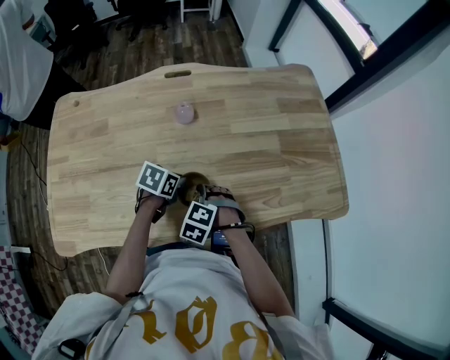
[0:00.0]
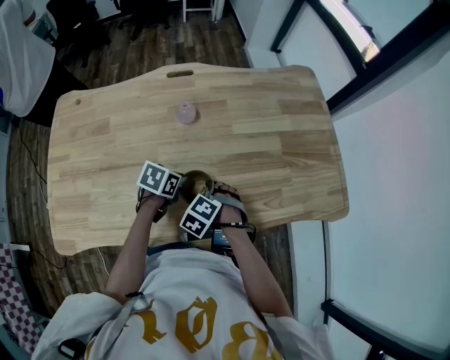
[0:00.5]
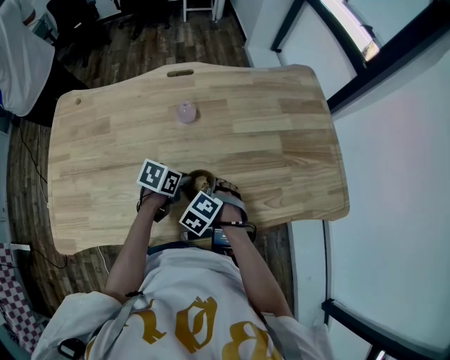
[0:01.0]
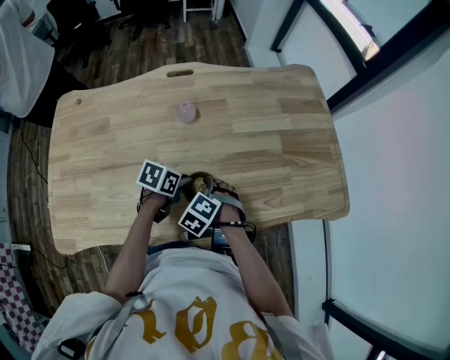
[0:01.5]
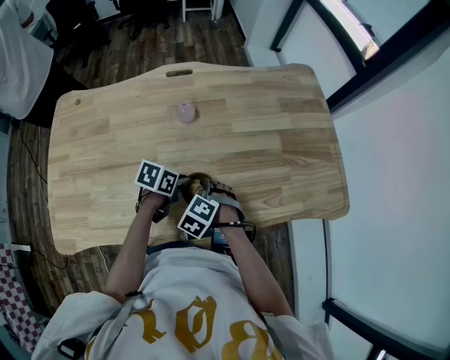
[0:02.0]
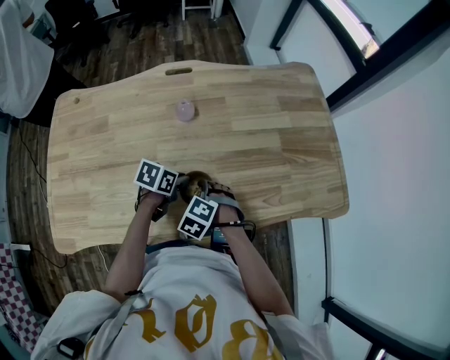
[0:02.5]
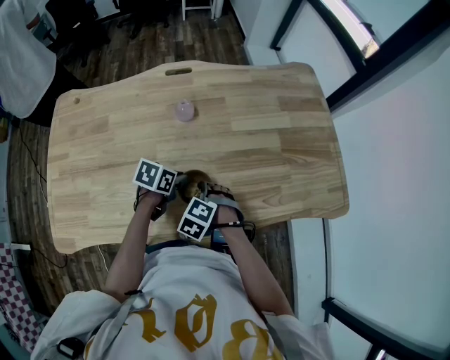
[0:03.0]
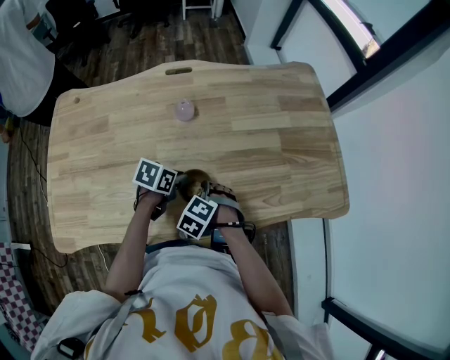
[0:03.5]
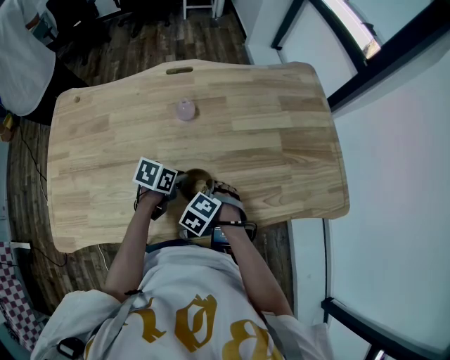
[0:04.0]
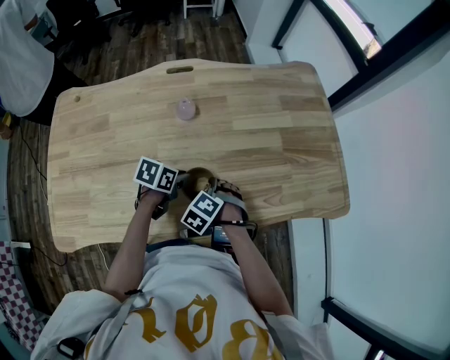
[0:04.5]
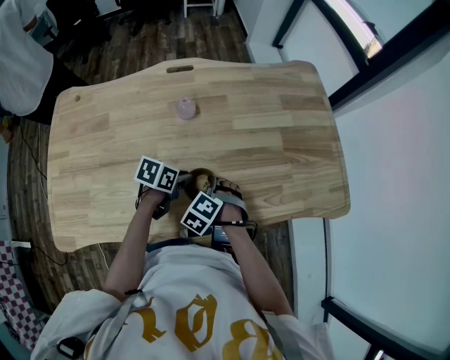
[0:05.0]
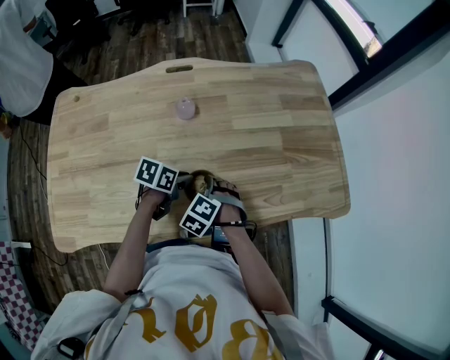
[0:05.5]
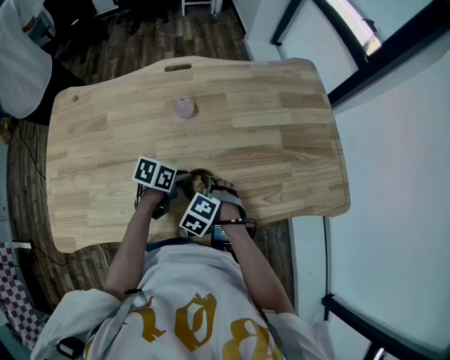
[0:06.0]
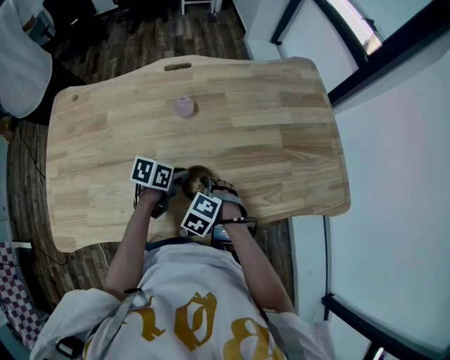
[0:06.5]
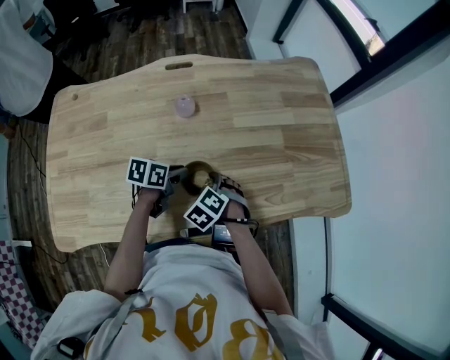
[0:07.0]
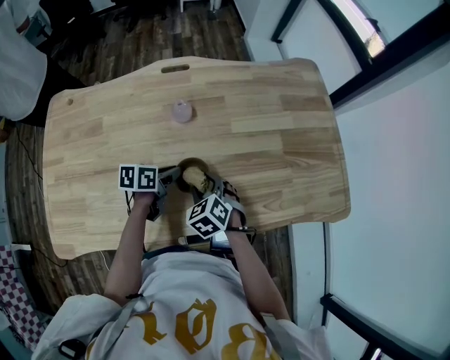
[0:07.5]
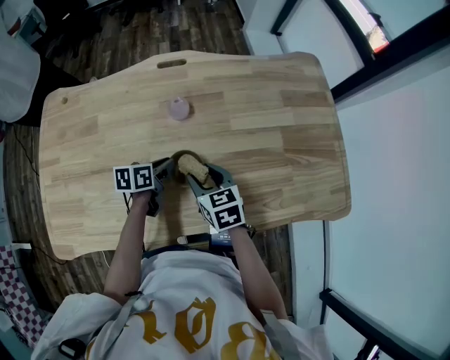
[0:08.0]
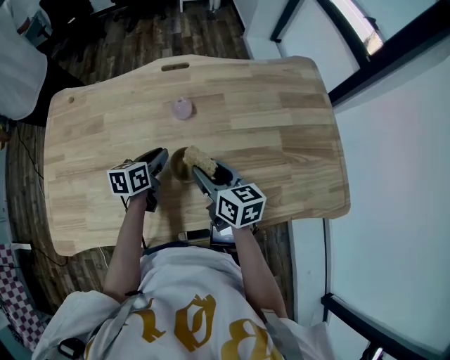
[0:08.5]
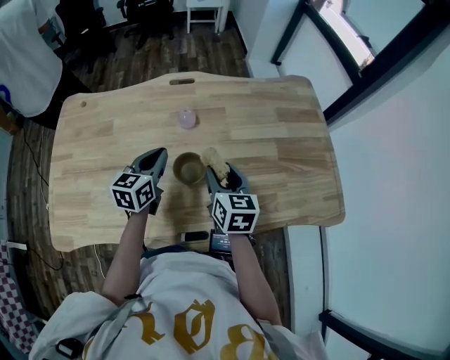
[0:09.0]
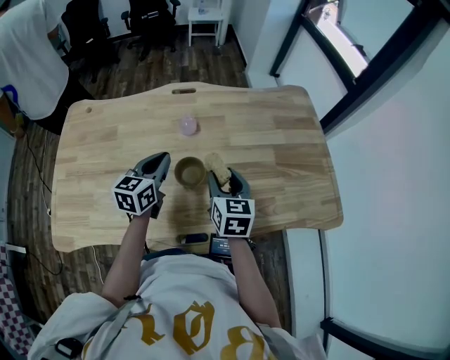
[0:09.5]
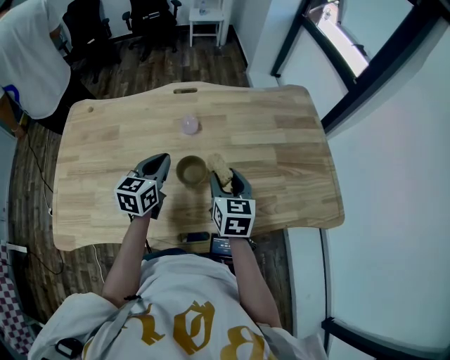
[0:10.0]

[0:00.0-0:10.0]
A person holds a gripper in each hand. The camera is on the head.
0:00.0 to 0:06.0: The grippers move only a little.
0:06.0 to 0:08.0: The left gripper shifts about 10 cm to the left and forward, and rotates about 20 degrees. Meanwhile the right gripper travels forward and upward by about 10 cm, and twists some 50 degrees clockwise, seen from behind.
0:08.0 to 0:10.0: The right gripper shifts approximately 10 cm upward and to the right, and turns by about 20 degrees; the left gripper shifts roughly 15 cm upward, and swivels about 40 degrees.

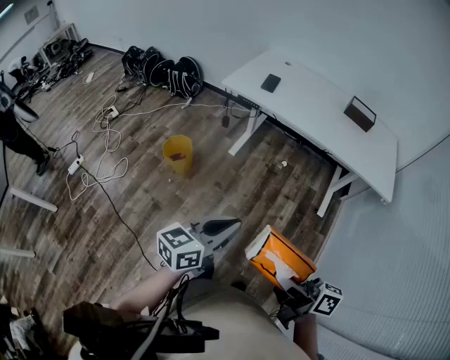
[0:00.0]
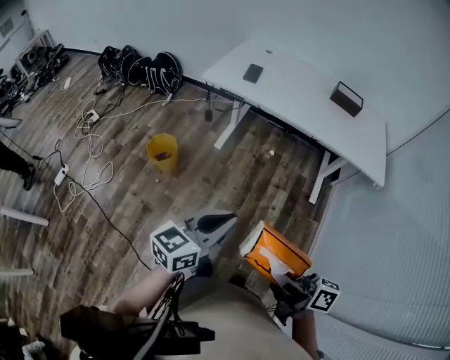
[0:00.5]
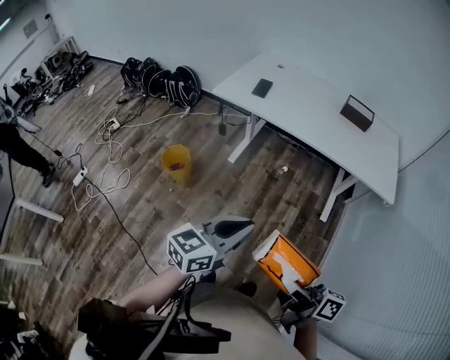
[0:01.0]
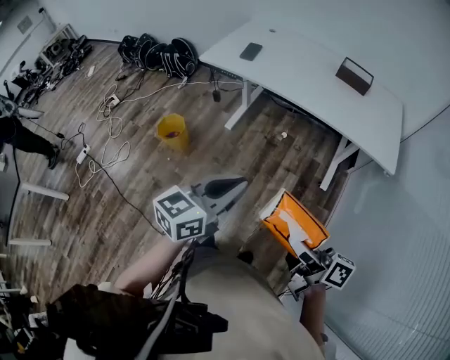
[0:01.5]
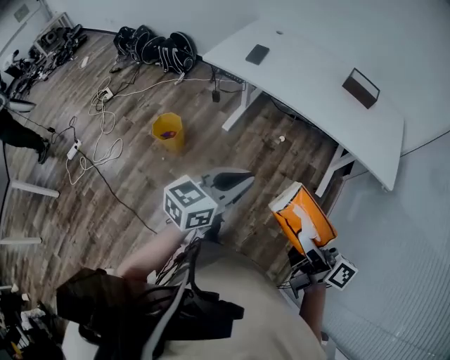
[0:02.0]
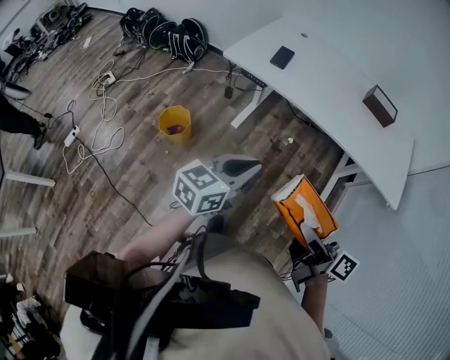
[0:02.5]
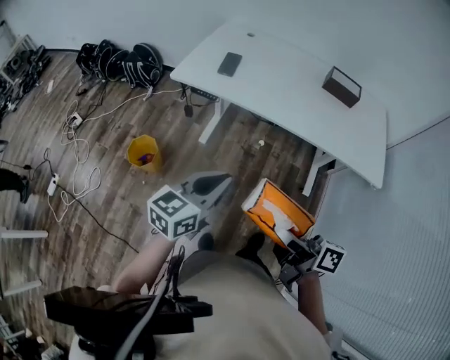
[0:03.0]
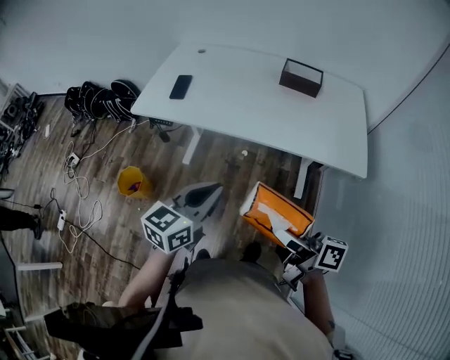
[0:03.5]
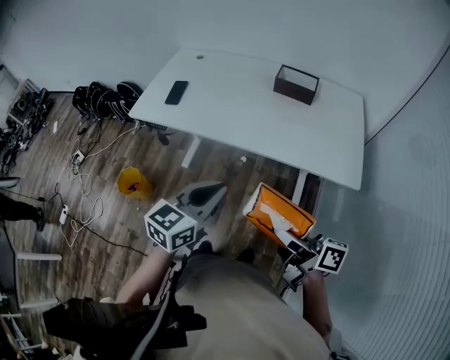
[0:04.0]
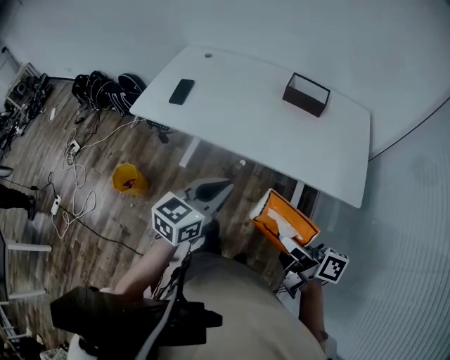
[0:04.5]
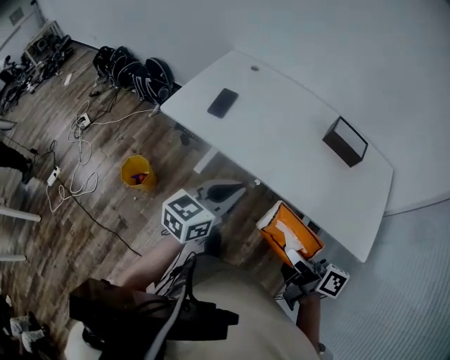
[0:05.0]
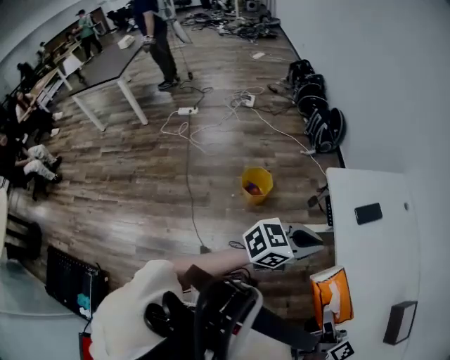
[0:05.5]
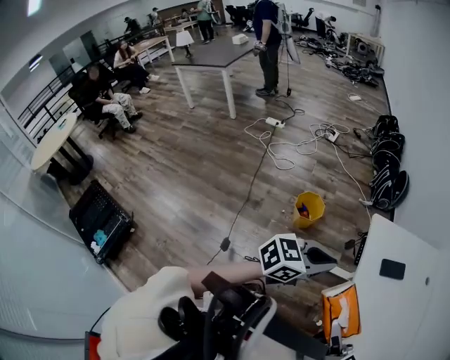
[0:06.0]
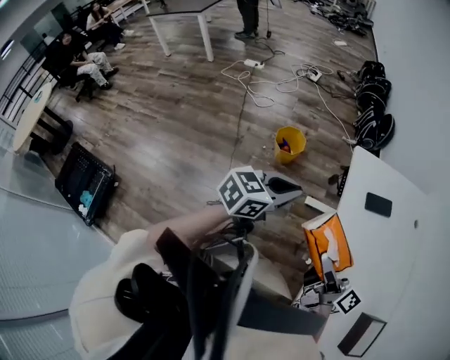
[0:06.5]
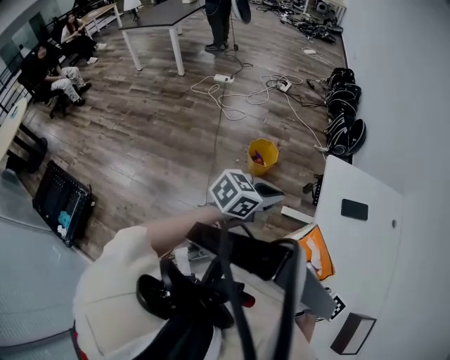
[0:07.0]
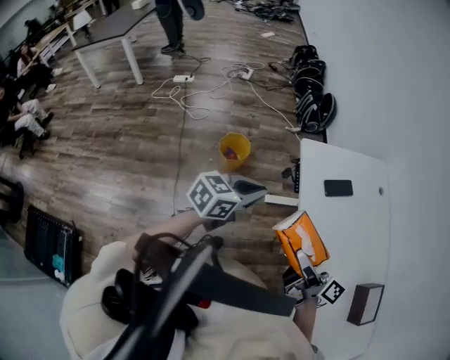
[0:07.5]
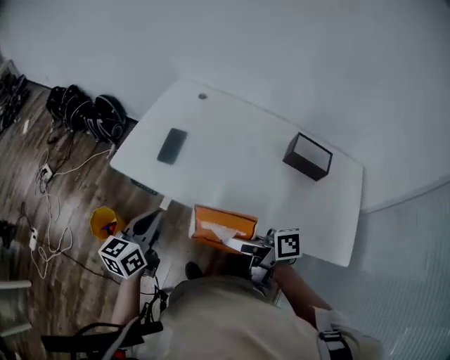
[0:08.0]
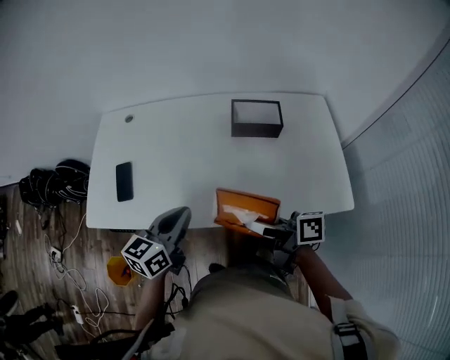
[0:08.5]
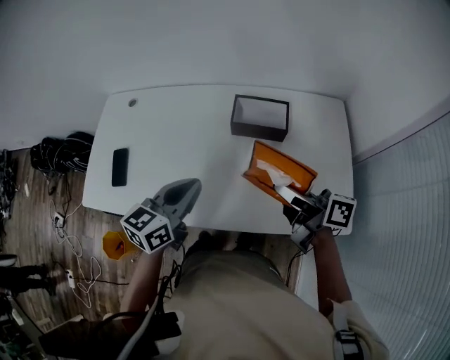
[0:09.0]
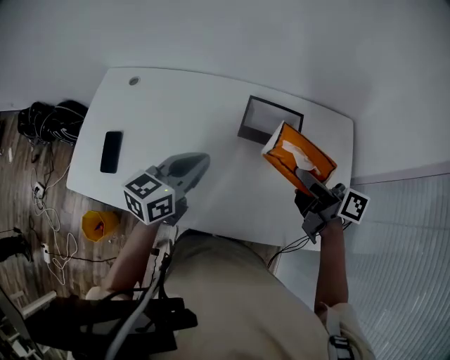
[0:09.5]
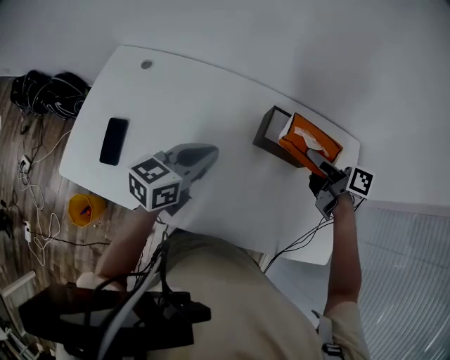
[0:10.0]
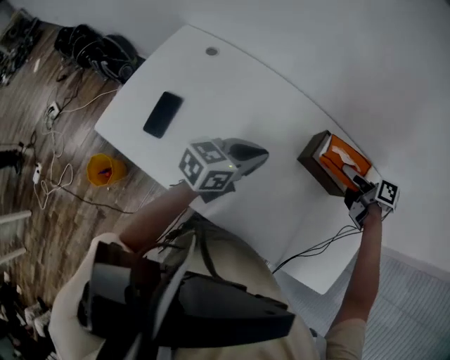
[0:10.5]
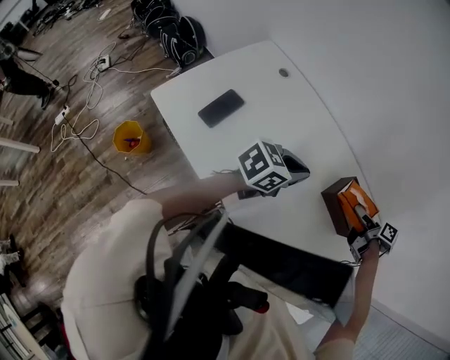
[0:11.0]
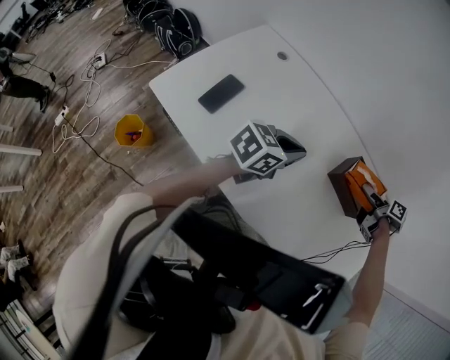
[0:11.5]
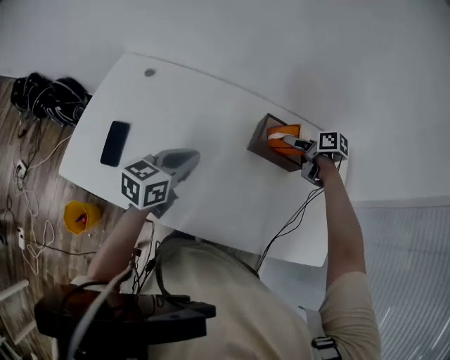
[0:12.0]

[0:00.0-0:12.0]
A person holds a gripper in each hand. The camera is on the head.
0:00.0 to 0:02.0: Both grippers travel together forward and to the right, approximately 15 cm.
0:02.0 to 0:04.0: Both grippers move to the right and forward, approximately 25 cm.
0:04.0 to 0:06.0: The right gripper moves roughly 30 cm, and swivels roughly 50 degrees. Meanwhile the left gripper shifts by roughly 30 cm, and turns by roughly 50 degrees.
0:06.0 to 0:08.0: The right gripper changes place by roughly 10 cm, and changes its angle by about 20 degrees. Meanwhile the left gripper shifts by roughly 20 cm, and rotates about 30 degrees.
0:08.0 to 0:10.0: Both grippers are carried roughly 50 cm. The right gripper turns by about 40 degrees. Meanwhile the left gripper swivels roughly 30 degrees.
0:10.0 to 0:12.0: The right gripper is displaced downward by about 10 cm, and turns by some 20 degrees. Meanwhile the left gripper ends up some 5 cm from where it was.

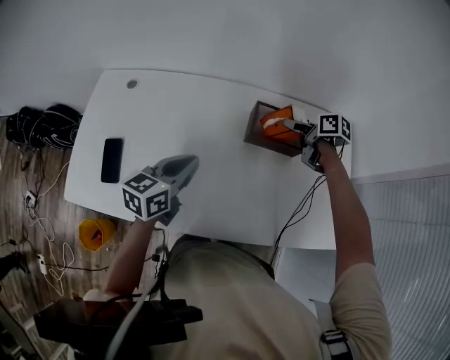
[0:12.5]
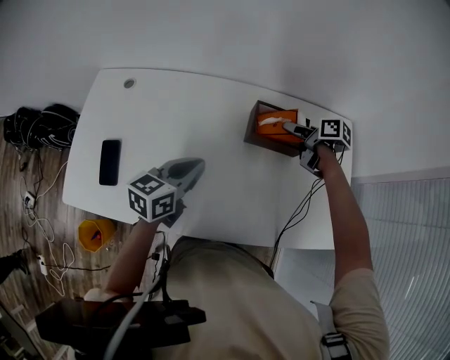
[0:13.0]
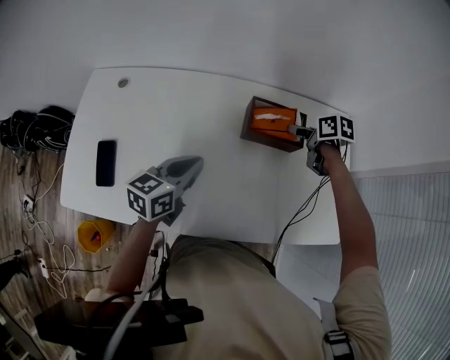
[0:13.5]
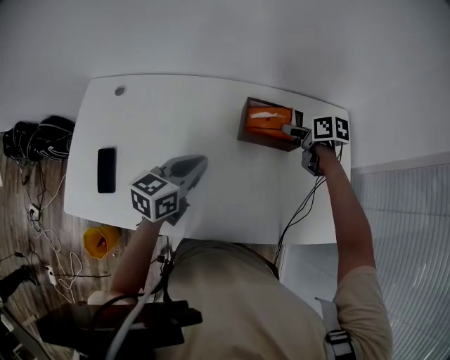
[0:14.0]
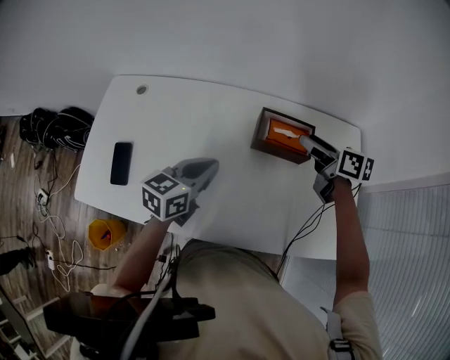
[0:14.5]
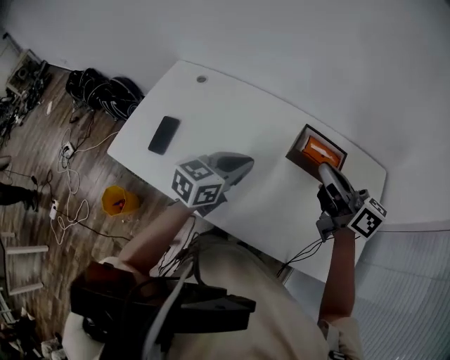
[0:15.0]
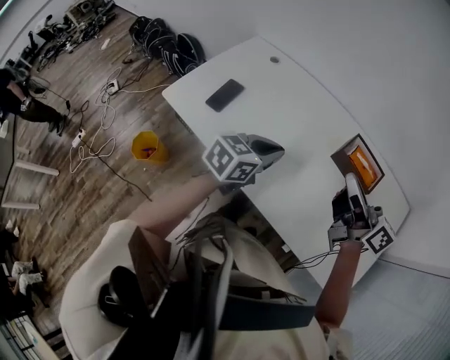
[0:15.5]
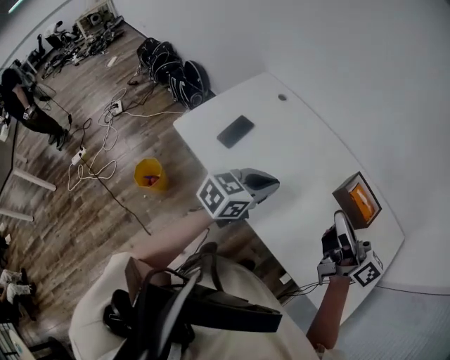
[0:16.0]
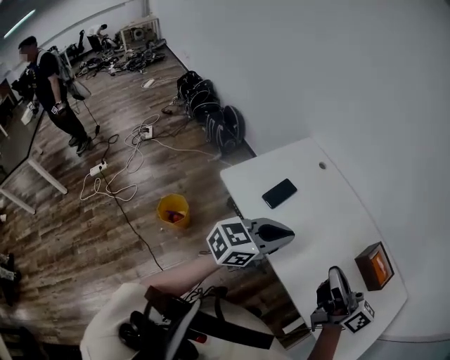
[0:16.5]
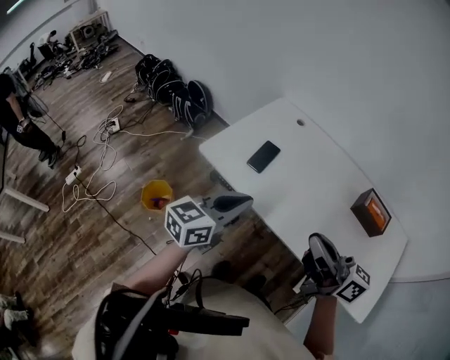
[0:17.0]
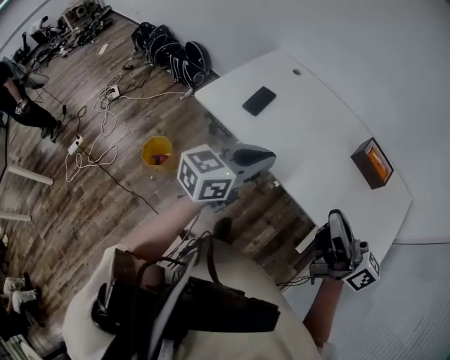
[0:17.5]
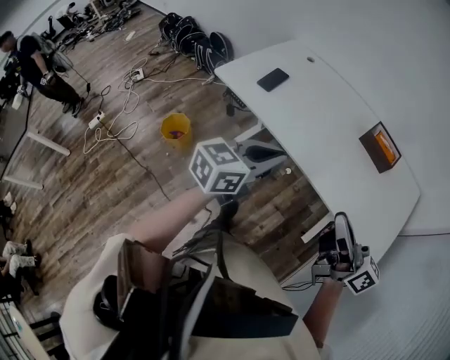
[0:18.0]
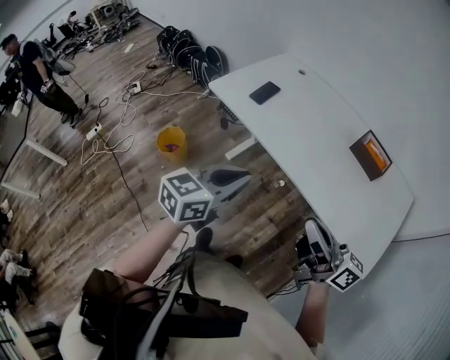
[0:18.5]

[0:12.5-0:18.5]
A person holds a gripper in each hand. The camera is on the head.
0:12.5 to 0:14.5: The right gripper goes some 5 cm upward, and changes its angle by approximately 20 degrees.
0:14.5 to 0:16.5: The left gripper shifts by some 35 cm, and swivels approximately 20 degrees. The right gripper shifts by some 50 cm, points its fingers some 40 degrees further upward, and closes.
0:16.5 to 0:18.5: Both grippers move backward, some 25 cm.
